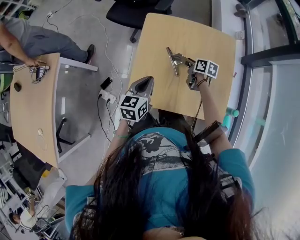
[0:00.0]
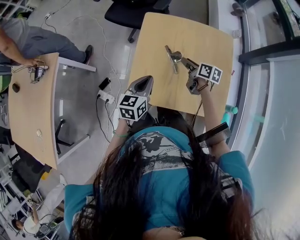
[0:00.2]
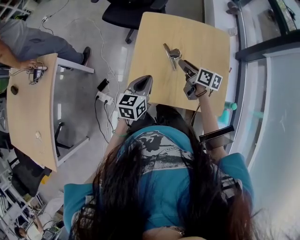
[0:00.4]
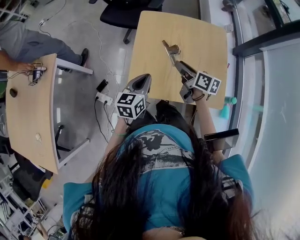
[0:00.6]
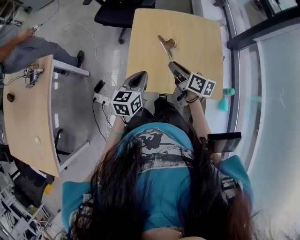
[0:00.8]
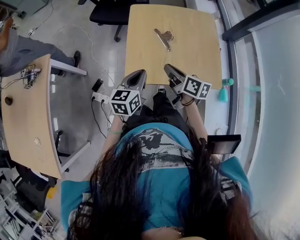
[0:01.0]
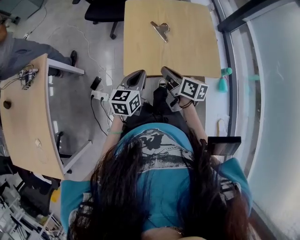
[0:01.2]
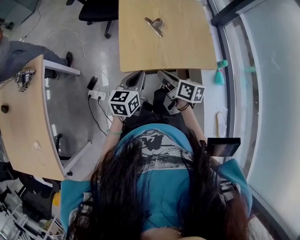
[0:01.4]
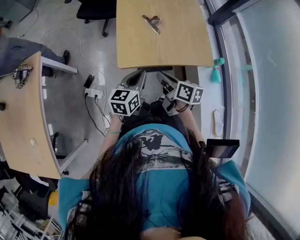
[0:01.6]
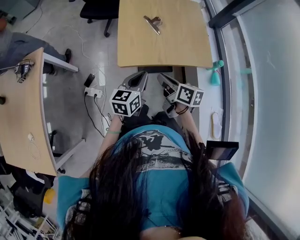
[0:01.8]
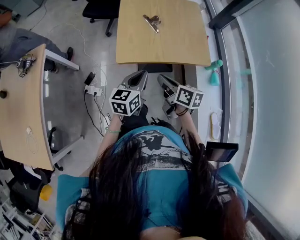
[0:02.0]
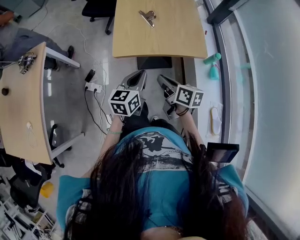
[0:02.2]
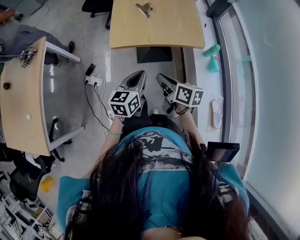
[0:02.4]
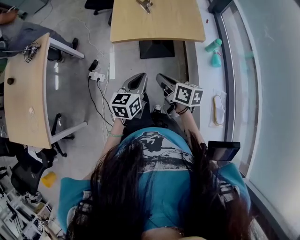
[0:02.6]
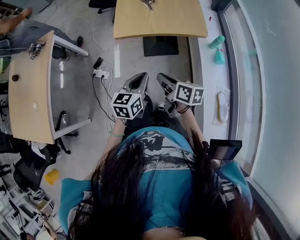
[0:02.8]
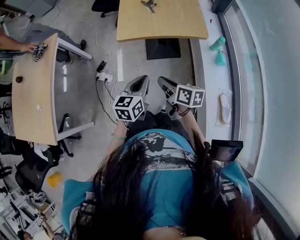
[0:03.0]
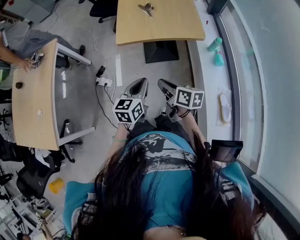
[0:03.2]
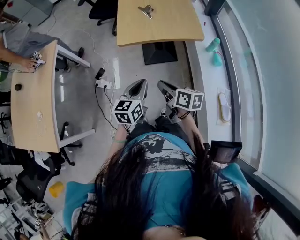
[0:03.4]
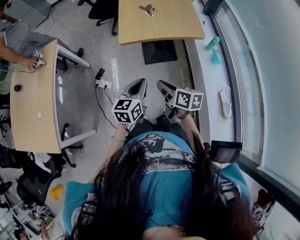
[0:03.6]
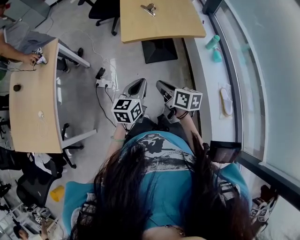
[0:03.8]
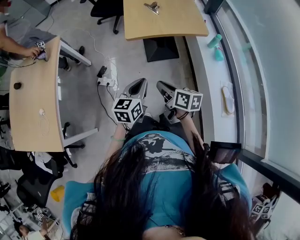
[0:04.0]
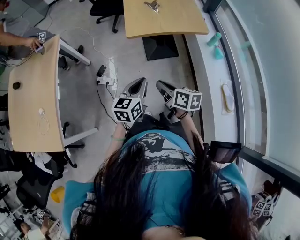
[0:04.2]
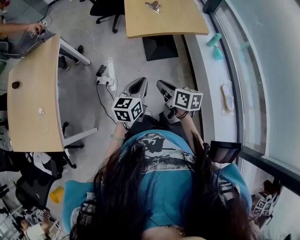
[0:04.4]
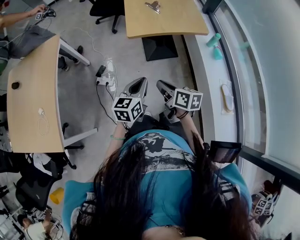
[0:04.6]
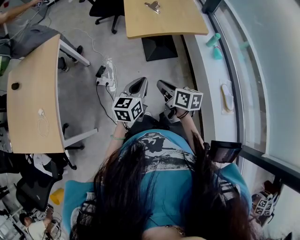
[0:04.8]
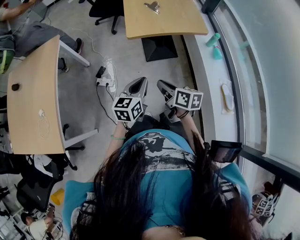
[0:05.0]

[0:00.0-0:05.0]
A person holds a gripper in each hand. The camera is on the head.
0:00.0 to 0:01.6: The left gripper goes about 20 cm backward. The right gripper is displaced backward by some 35 cm, and closes up.
0:01.6 to 0:03.4: Both grippers travel together backward, about 30 cm.
0:03.4 to 0:05.0: The left gripper is displaced to the left by roughly 10 cm. The right gripper moves to the left and backward, about 10 cm.

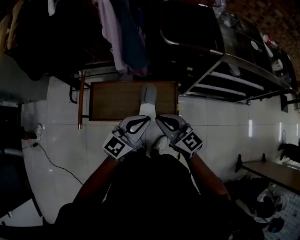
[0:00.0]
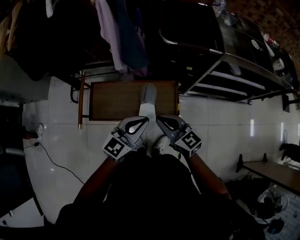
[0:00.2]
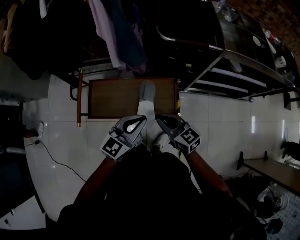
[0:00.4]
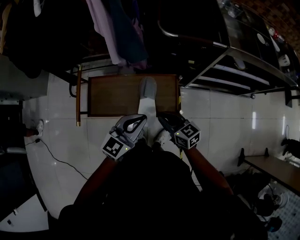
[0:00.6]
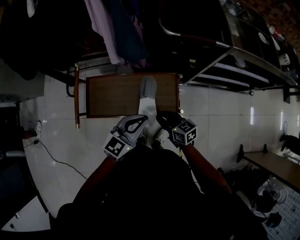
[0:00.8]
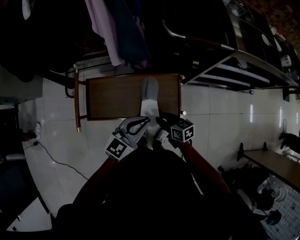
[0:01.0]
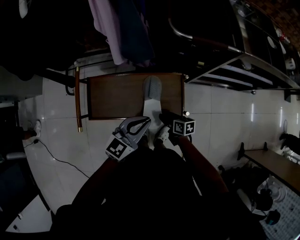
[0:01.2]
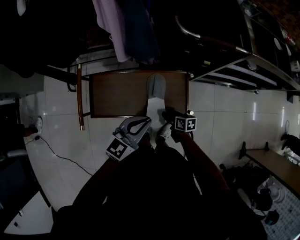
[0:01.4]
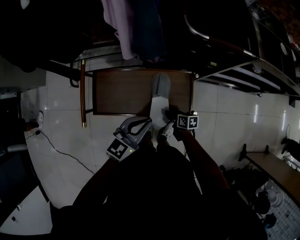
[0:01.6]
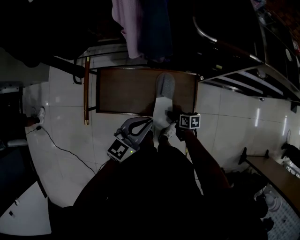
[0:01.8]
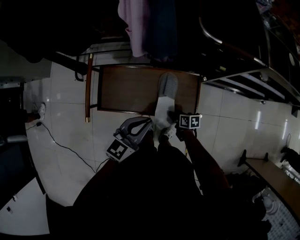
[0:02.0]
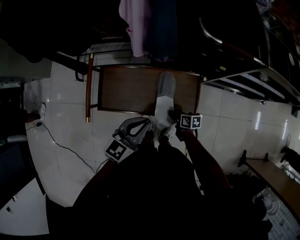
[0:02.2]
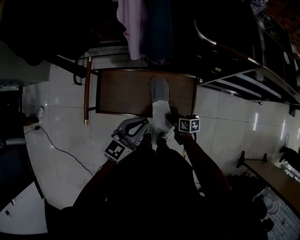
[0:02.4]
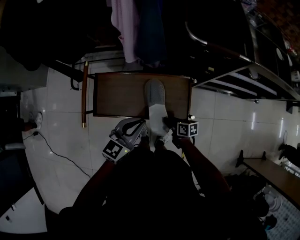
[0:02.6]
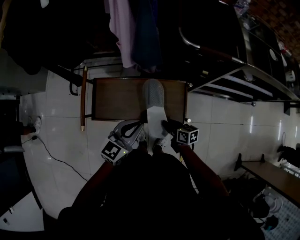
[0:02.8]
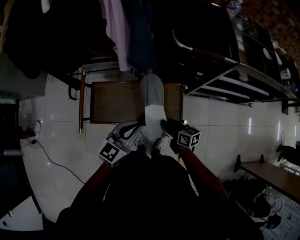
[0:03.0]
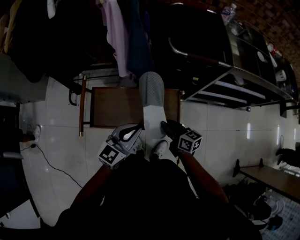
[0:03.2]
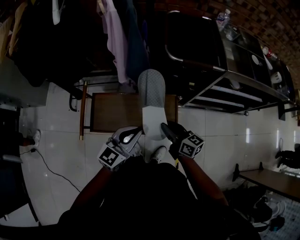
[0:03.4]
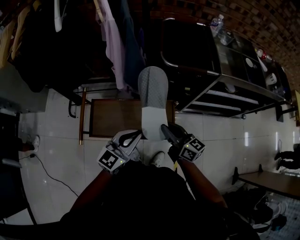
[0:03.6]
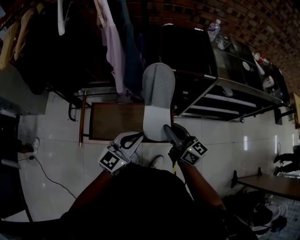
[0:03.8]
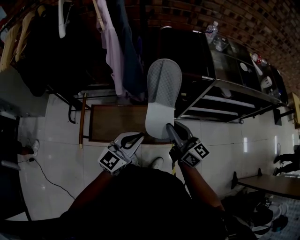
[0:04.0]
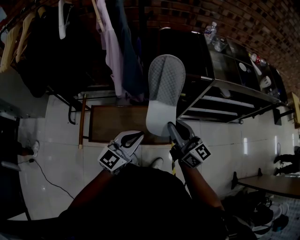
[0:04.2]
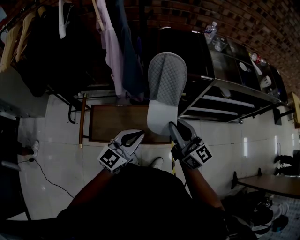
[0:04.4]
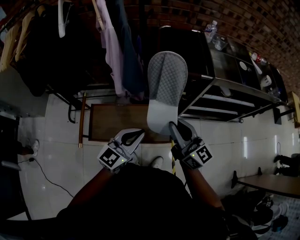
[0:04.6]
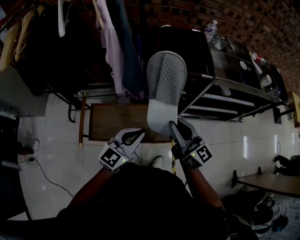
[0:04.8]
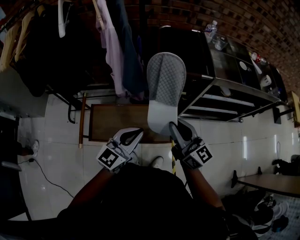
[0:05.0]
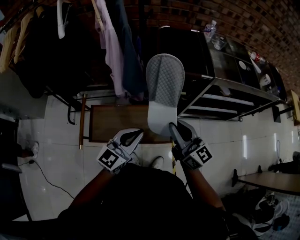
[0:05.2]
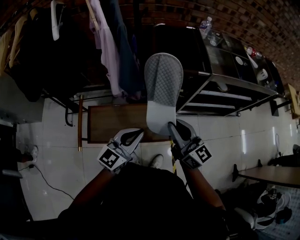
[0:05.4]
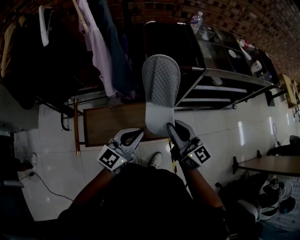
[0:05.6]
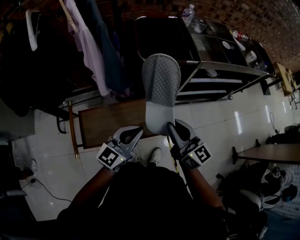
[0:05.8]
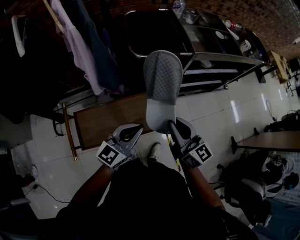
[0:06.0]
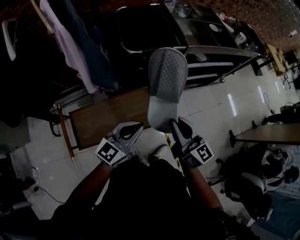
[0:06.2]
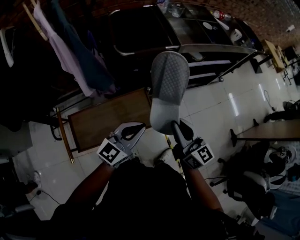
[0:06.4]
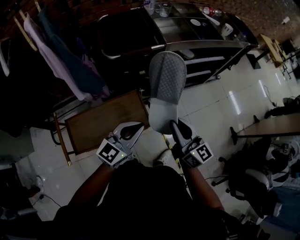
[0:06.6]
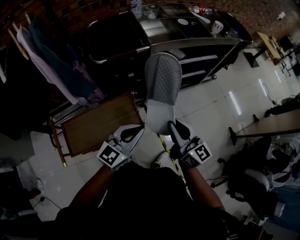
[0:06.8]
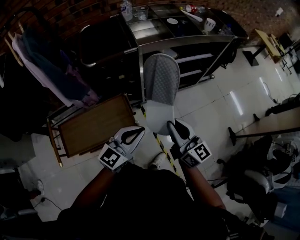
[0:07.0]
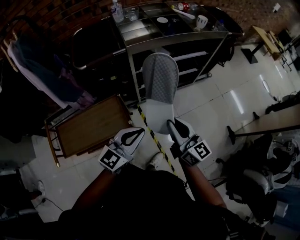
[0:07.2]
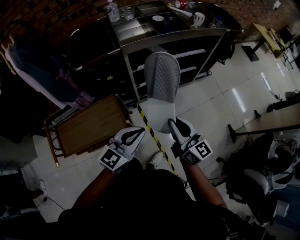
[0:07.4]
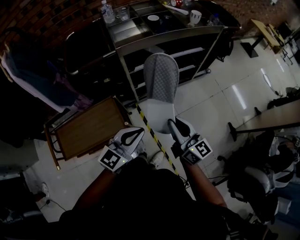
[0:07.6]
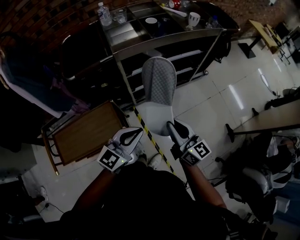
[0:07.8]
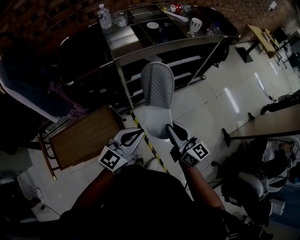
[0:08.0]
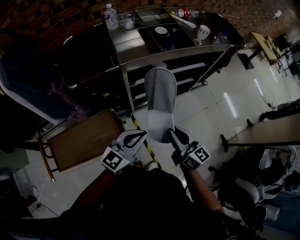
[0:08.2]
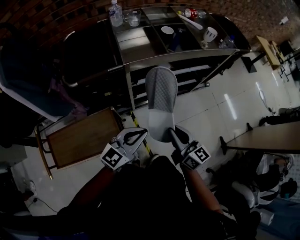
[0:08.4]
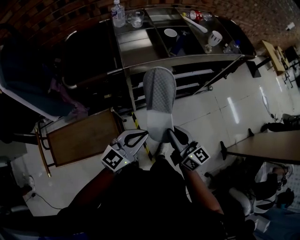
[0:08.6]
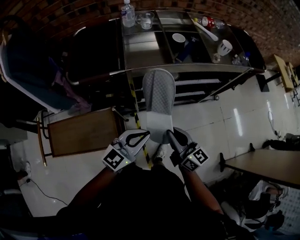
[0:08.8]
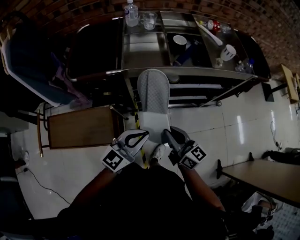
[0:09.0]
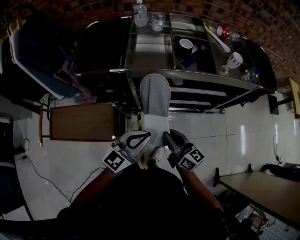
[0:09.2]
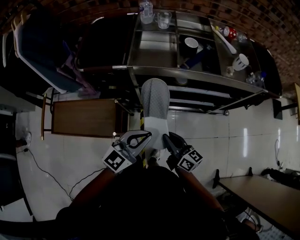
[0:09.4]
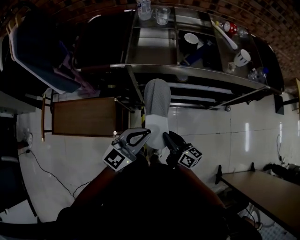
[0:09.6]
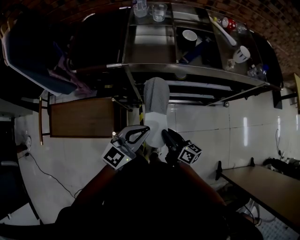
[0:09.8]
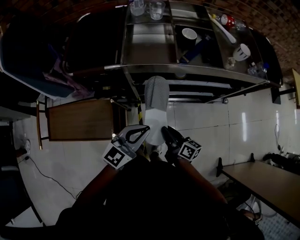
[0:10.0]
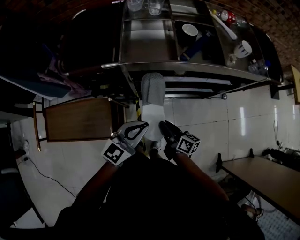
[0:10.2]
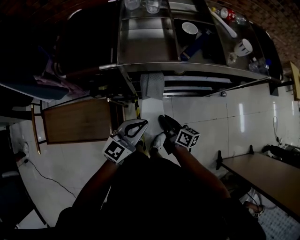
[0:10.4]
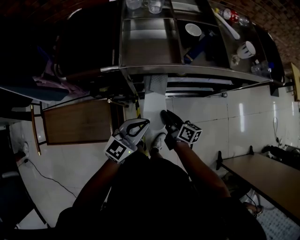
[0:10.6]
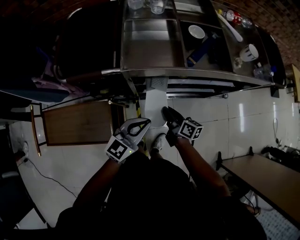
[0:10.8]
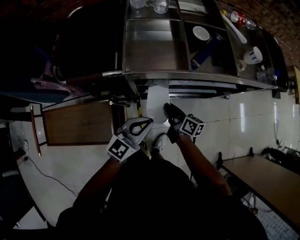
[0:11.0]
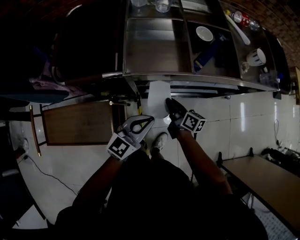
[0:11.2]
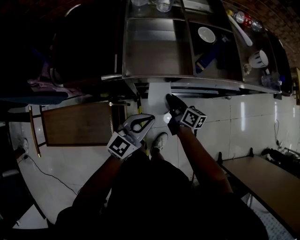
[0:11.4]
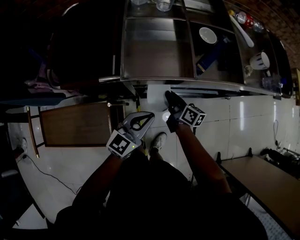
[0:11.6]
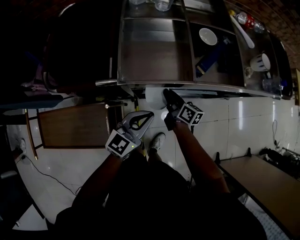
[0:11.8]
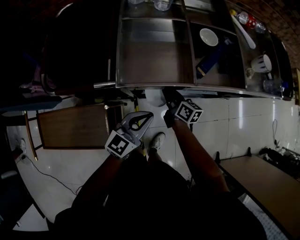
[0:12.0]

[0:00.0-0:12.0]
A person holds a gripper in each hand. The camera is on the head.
0:00.0 to 0:01.6: The right gripper is displaced downward by approximately 35 cm, rolls clockwise, seen from behind, by roughly 50 degrees, and opens its fingers; the left gripper goes roughly 10 cm downward and to the left.
0:01.6 to 0:03.0: The right gripper heads upward, covering about 15 cm, changes its angle by about 20 degrees, and closes its fingers.
0:03.0 to 0:04.4: The right gripper heads upward, covering roughly 30 cm, and angles its fingers upward, by roughly 30 degrees. Meanwhile the left gripper moves upward and to the right, about 10 cm.
0:04.4 to 0:06.0: The right gripper shifts by some 5 cm.
0:06.0 to 0:07.6: The two grippers go roughly 35 cm to the right.
0:07.6 to 0:09.0: Both grippers move forward, roughly 20 cm. The right gripper turns by about 20 degrees.
0:09.0 to 0:10.4: The left gripper is displaced downward and forward by some 10 cm. Meanwhile the right gripper shifts some 20 cm downward and forward, and turns by roughly 30 degrees.
0:10.4 to 0:12.0: The right gripper is displaced forward by some 20 cm; the left gripper is displaced forward by about 10 cm.

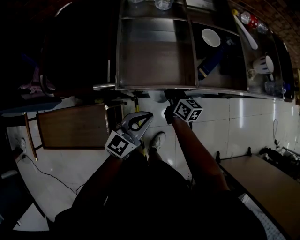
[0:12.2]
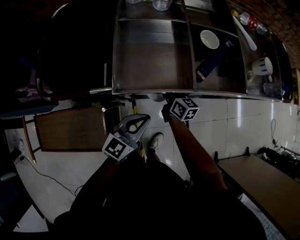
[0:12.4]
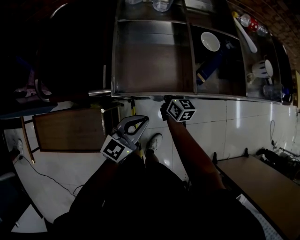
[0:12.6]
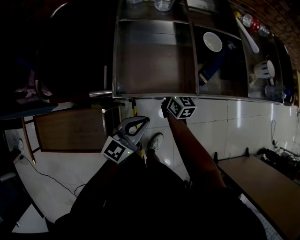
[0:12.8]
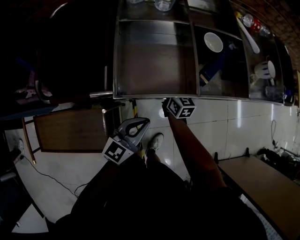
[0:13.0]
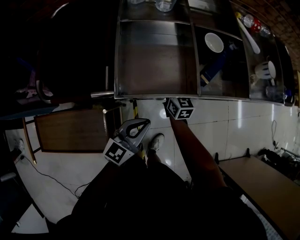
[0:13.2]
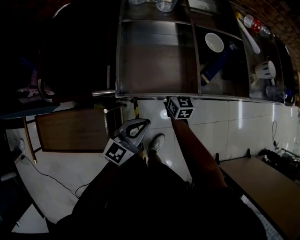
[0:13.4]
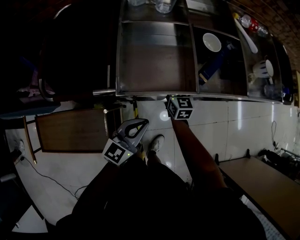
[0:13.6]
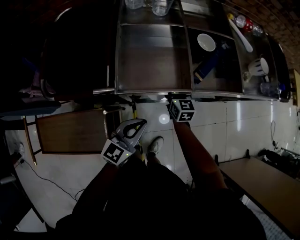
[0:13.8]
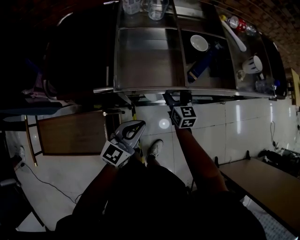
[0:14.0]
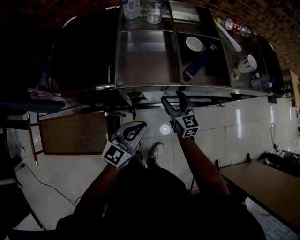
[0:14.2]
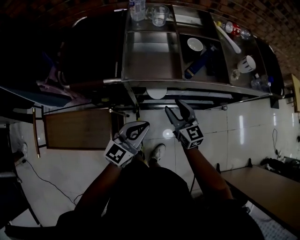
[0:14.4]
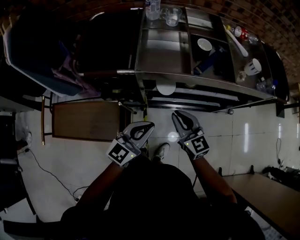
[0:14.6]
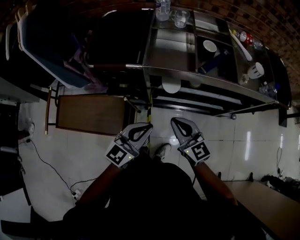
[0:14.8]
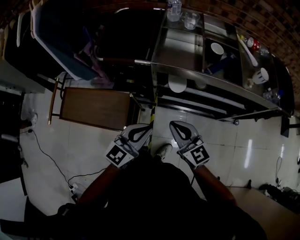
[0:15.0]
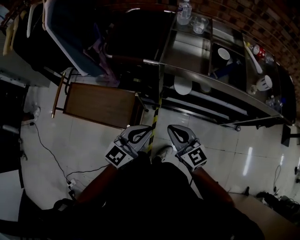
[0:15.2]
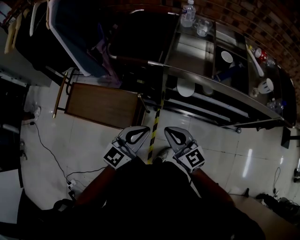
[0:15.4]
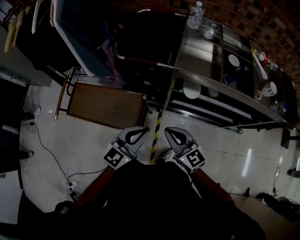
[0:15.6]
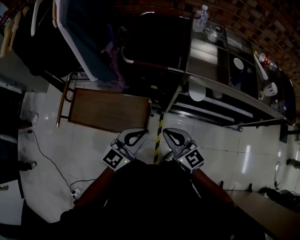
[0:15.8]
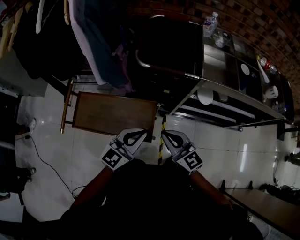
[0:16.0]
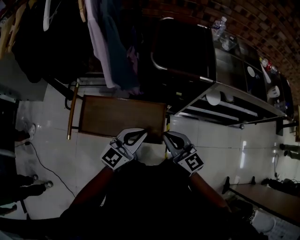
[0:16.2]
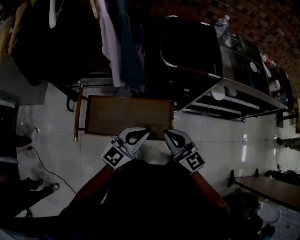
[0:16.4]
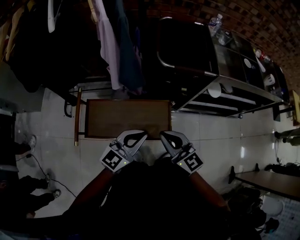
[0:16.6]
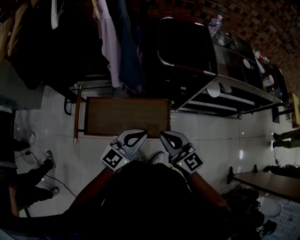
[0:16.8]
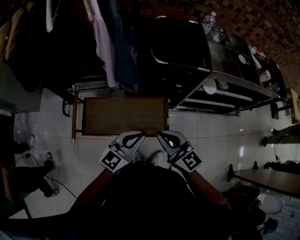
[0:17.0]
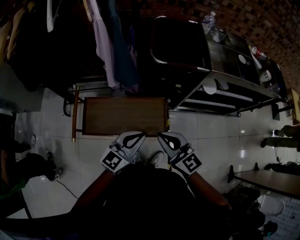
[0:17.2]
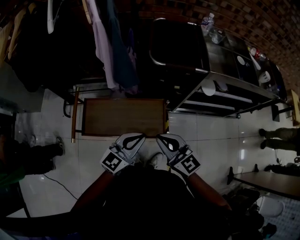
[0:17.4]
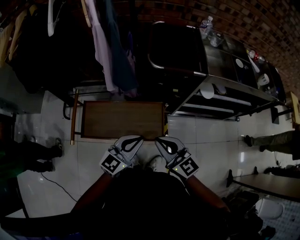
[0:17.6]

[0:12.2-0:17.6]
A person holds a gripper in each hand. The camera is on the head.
0:12.2 to 0:13.6: The right gripper swivels approximately 30 degrees, and opens its fingers.
0:13.6 to 0:15.0: The left gripper travels backward and upward by roughly 20 cm, while the right gripper goes about 40 cm backward and upward, rotates about 40 degrees, and closes up.
0:15.0 to 0:16.2: Both grippers move to the left, approximately 35 cm.
0:16.2 to 0:17.6: The left gripper goes some 5 cm backward. The right gripper is displaced backward and to the left by approximately 10 cm.

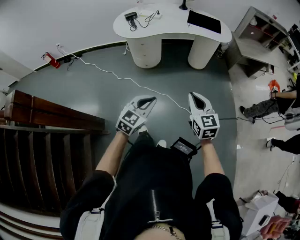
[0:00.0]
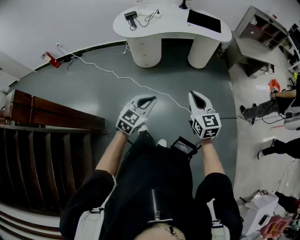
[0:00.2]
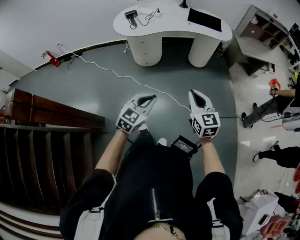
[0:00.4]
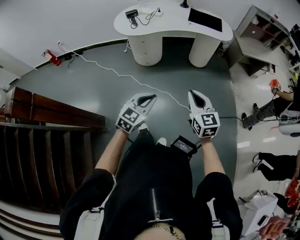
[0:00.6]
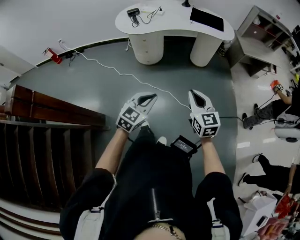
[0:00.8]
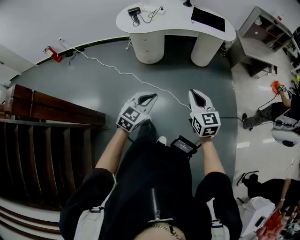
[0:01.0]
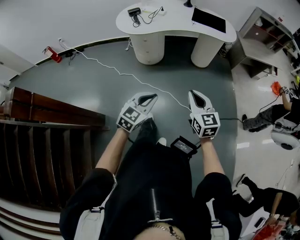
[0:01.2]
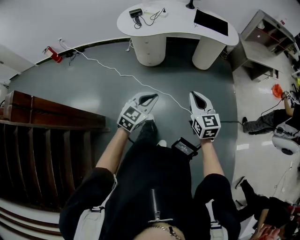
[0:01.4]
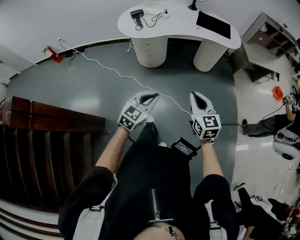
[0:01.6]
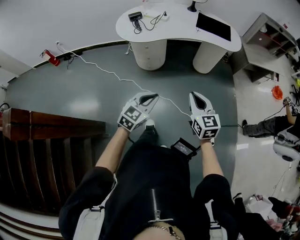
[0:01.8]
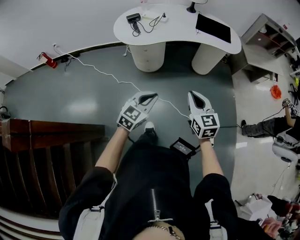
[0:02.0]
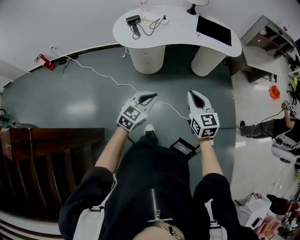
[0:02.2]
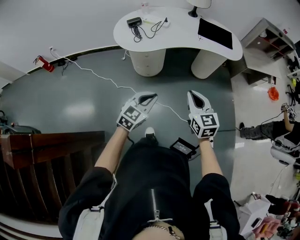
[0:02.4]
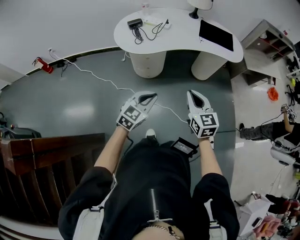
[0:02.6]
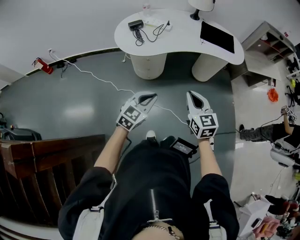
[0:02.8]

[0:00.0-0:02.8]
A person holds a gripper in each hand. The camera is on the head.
0:00.0 to 0:01.4: The grippers make only small movements.
0:01.4 to 0:02.8: The two grippers go some 25 cm forward and to the left.
